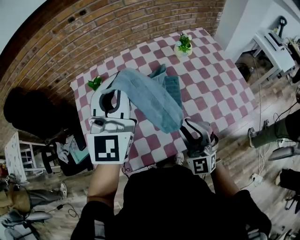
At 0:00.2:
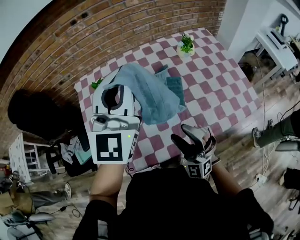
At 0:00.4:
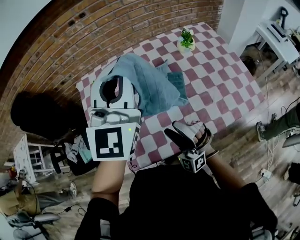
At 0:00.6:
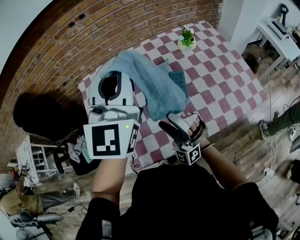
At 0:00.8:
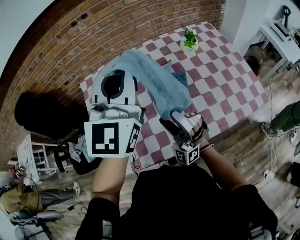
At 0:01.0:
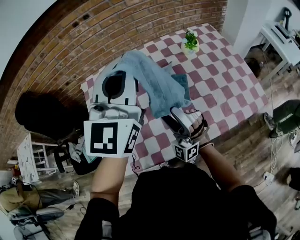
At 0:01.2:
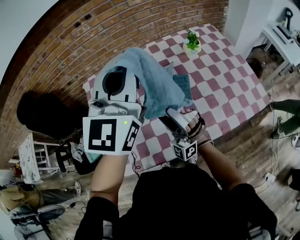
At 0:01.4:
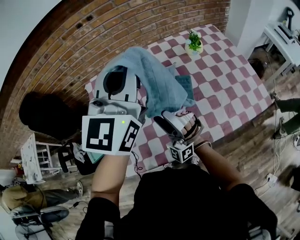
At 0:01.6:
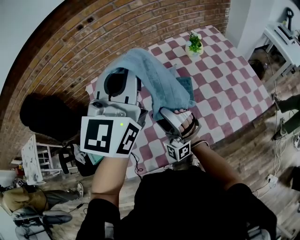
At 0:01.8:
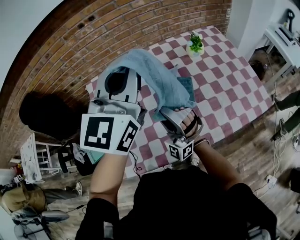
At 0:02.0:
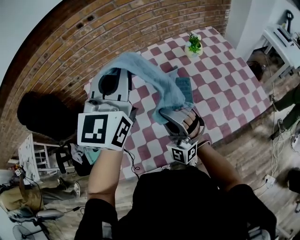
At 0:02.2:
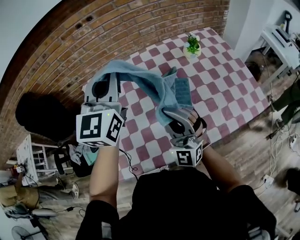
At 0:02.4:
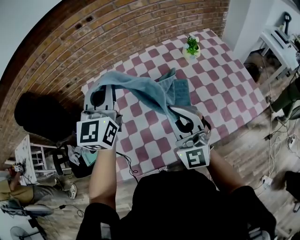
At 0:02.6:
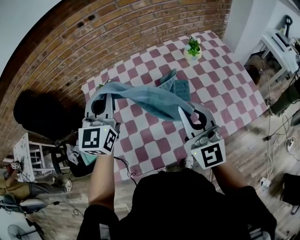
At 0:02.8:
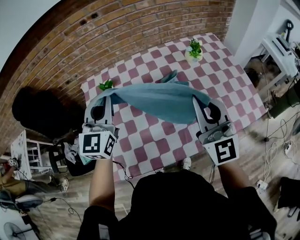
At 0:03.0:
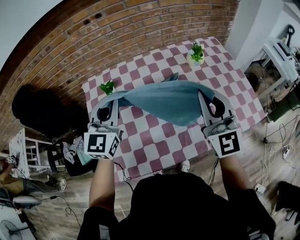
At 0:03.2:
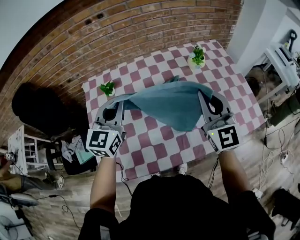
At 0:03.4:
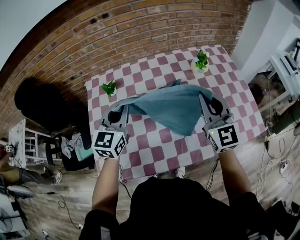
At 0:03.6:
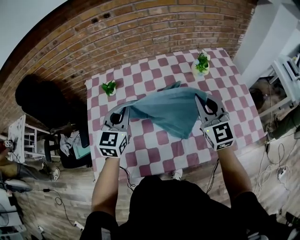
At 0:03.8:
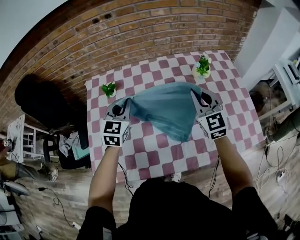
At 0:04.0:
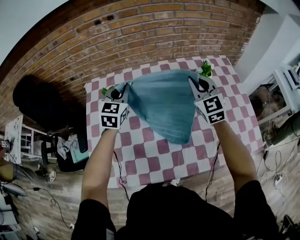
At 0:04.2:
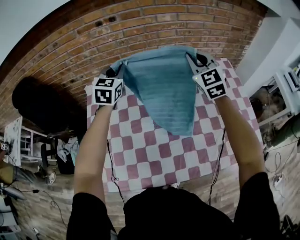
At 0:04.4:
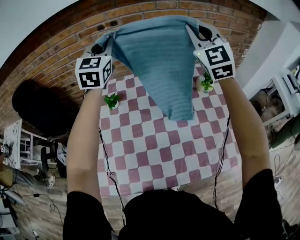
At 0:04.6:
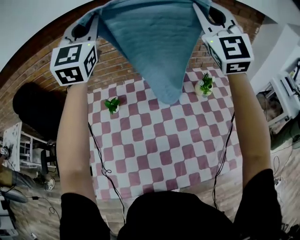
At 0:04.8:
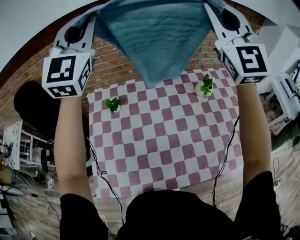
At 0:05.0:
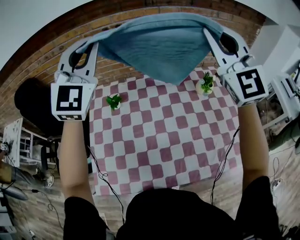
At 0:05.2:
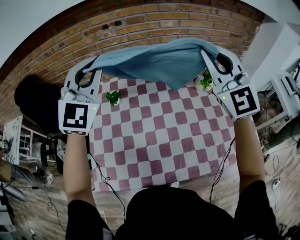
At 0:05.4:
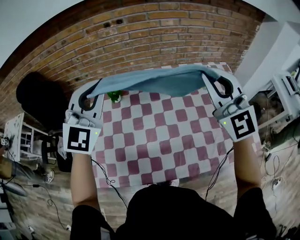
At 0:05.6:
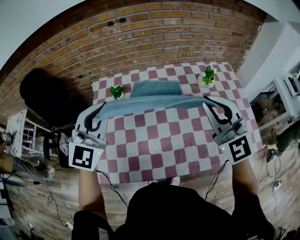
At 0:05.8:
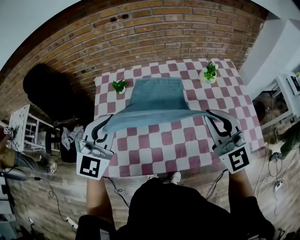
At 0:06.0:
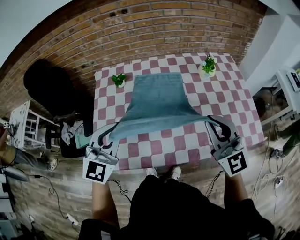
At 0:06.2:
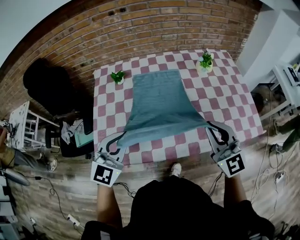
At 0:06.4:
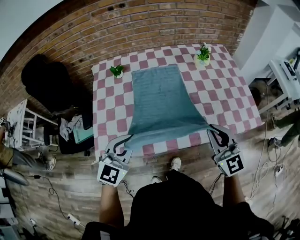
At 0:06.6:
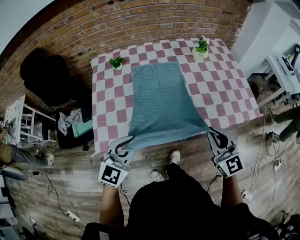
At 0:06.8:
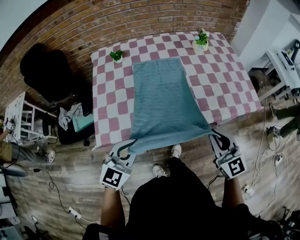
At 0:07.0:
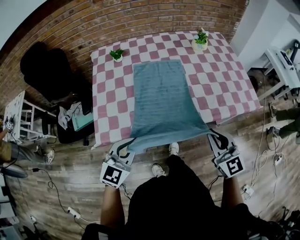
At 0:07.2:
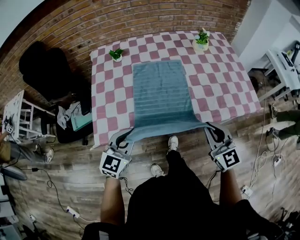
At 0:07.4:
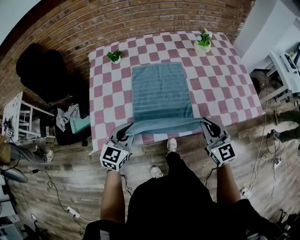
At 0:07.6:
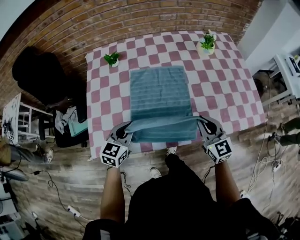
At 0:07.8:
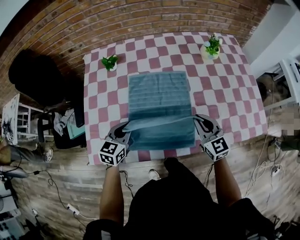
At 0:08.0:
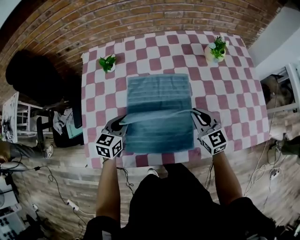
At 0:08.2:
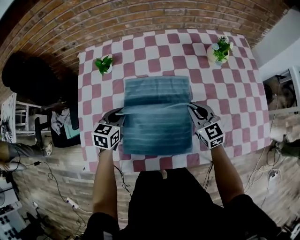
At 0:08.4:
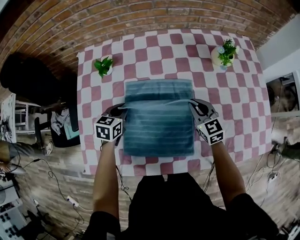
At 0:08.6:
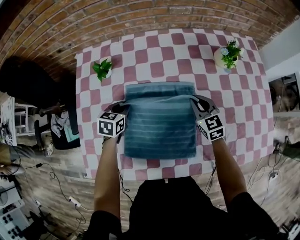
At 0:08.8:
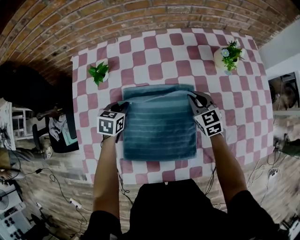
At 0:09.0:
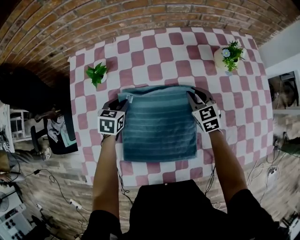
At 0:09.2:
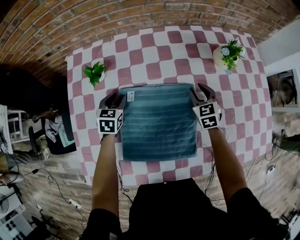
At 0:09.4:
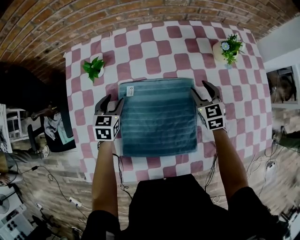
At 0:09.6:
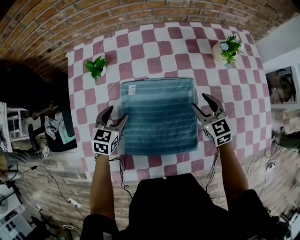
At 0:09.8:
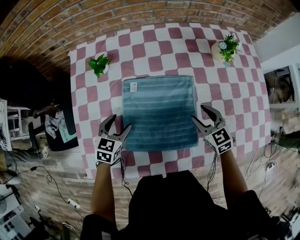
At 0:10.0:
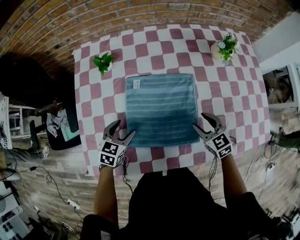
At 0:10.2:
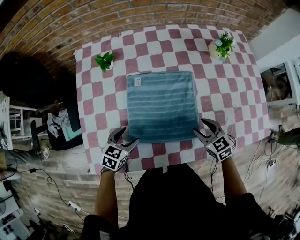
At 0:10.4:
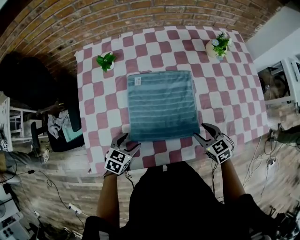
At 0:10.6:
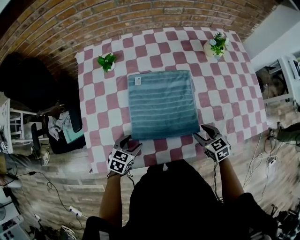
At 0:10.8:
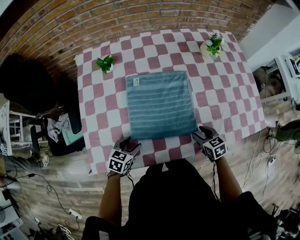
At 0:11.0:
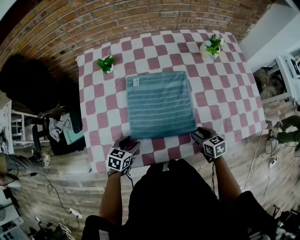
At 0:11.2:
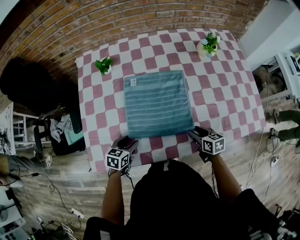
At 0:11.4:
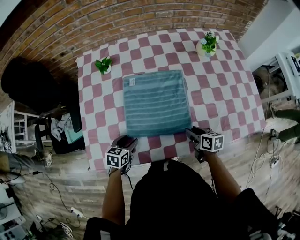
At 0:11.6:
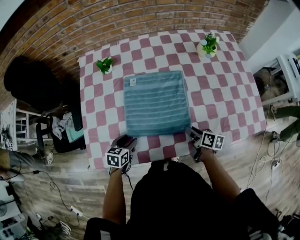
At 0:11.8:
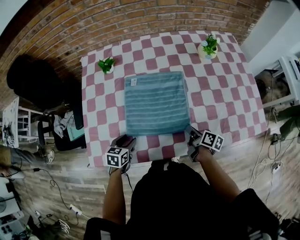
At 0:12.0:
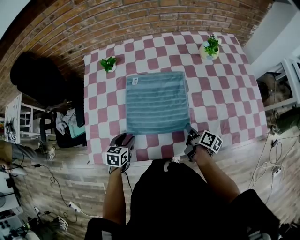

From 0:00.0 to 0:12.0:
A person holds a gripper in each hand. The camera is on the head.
From 0:00.0 to 0:01.6: The left gripper travels upward by about 5 cm. The right gripper heads to the left and forward, covering some 15 cm, rotates roughly 40 degrees, and opens up.
From 0:01.6 to 0:03.0: The right gripper shifts about 20 cm to the right and upward, twists some 50 degrees clockwise, seen from behind, and closes its fingers, while the left gripper heads downward and to the left, covering about 20 cm.
From 0:03.0 to 0:04.4: Both grippers move forward and upward, roughly 30 cm. The right gripper turns by about 20 degrees.
From 0:04.4 to 0:06.0: Both grippers travel together backward, about 40 cm. The right gripper rotates about 30 degrees.
From 0:06.0 to 0:07.6: Both grippers move downward, some 20 cm. The left gripper swivels some 30 degrees. The right gripper swivels approximately 20 degrees.
From 0:07.6 to 0:09.0: Both grippers move forward and downward, roughly 35 cm. The left gripper swivels roughly 30 degrees; the right gripper changes its angle by roughly 20 degrees.
From 0:09.0 to 0:10.4: Both grippers move backward, some 30 cm.
From 0:10.4 to 0:12.0: The right gripper rolls clockwise, seen from behind, by roughly 80 degrees. Meanwhile the left gripper swivels roughly 20 degrees.

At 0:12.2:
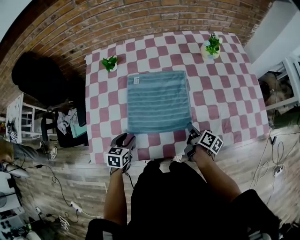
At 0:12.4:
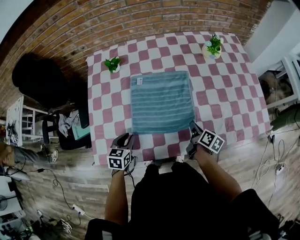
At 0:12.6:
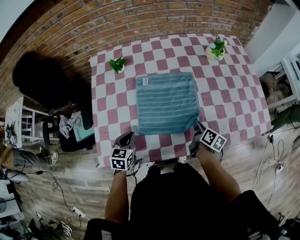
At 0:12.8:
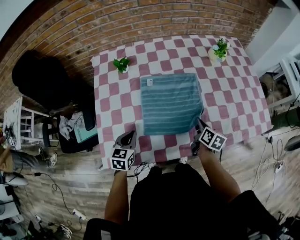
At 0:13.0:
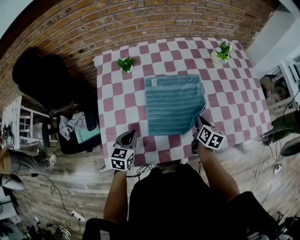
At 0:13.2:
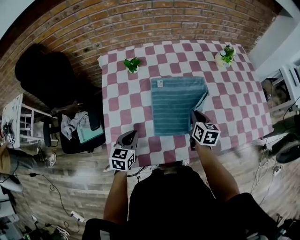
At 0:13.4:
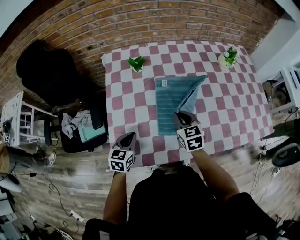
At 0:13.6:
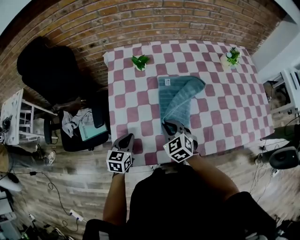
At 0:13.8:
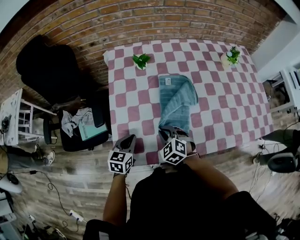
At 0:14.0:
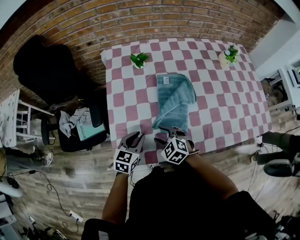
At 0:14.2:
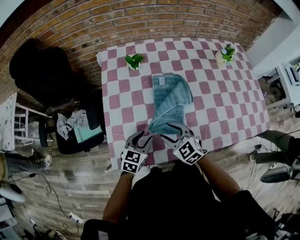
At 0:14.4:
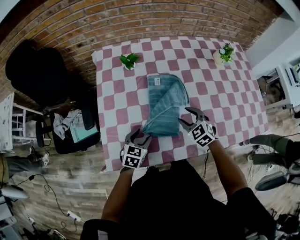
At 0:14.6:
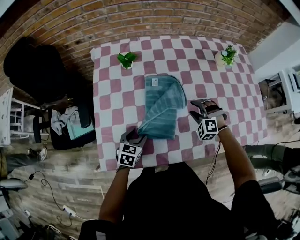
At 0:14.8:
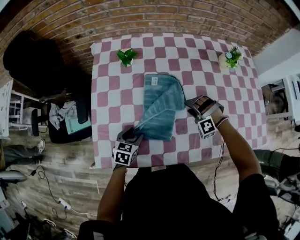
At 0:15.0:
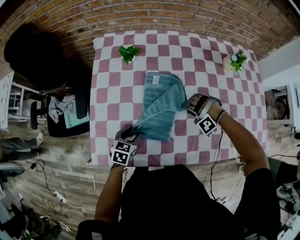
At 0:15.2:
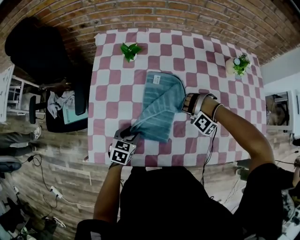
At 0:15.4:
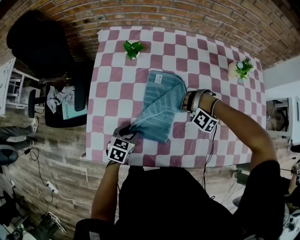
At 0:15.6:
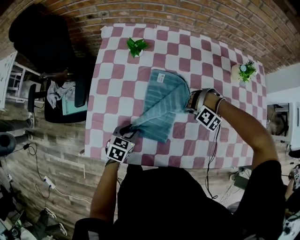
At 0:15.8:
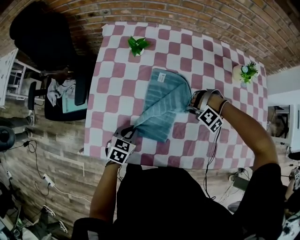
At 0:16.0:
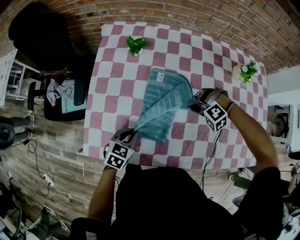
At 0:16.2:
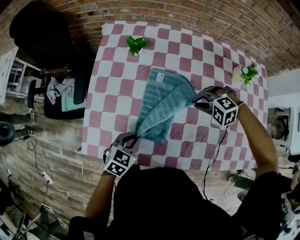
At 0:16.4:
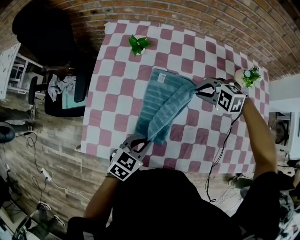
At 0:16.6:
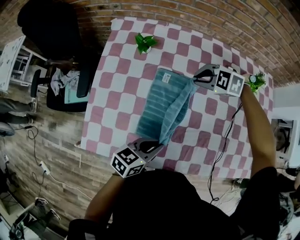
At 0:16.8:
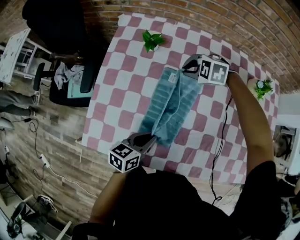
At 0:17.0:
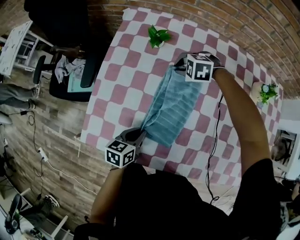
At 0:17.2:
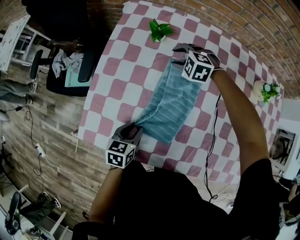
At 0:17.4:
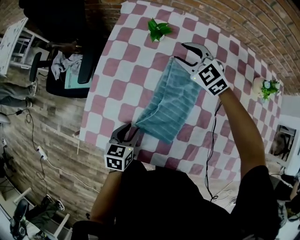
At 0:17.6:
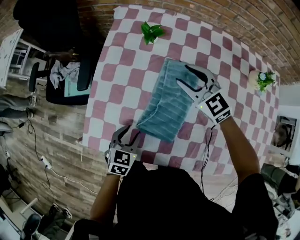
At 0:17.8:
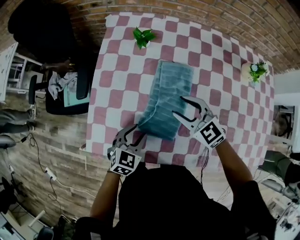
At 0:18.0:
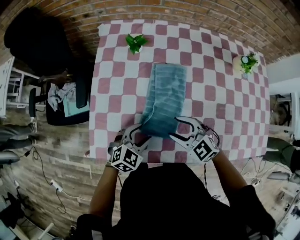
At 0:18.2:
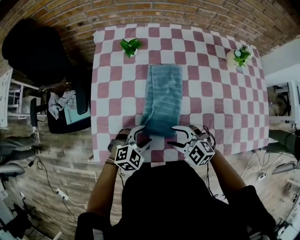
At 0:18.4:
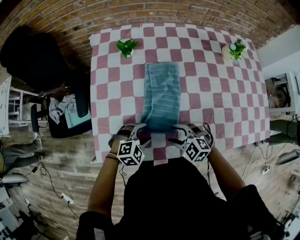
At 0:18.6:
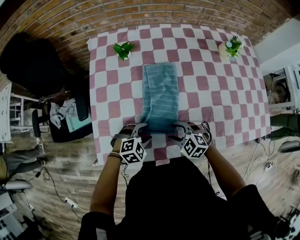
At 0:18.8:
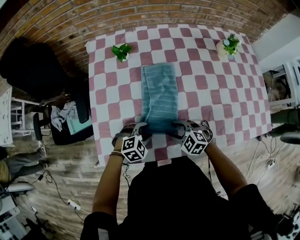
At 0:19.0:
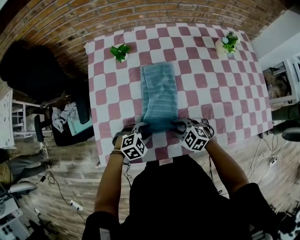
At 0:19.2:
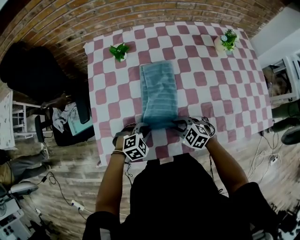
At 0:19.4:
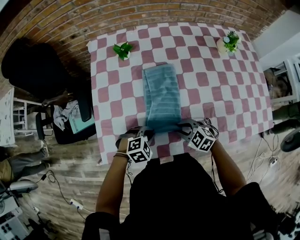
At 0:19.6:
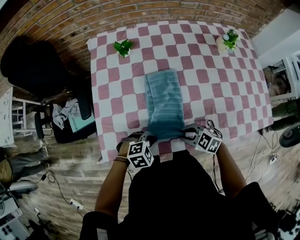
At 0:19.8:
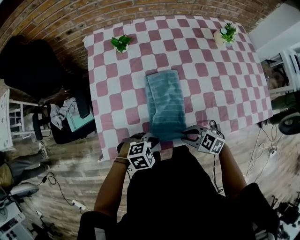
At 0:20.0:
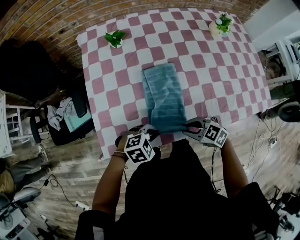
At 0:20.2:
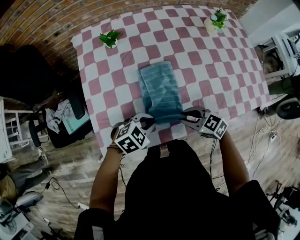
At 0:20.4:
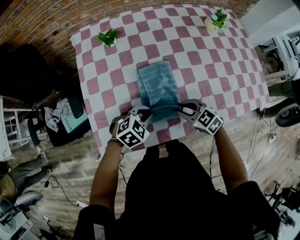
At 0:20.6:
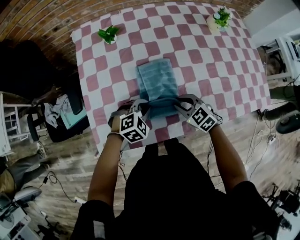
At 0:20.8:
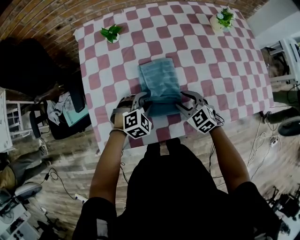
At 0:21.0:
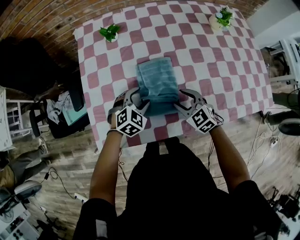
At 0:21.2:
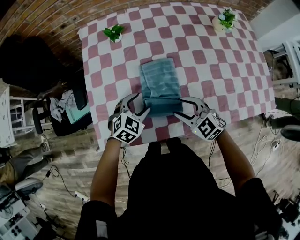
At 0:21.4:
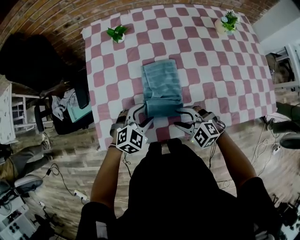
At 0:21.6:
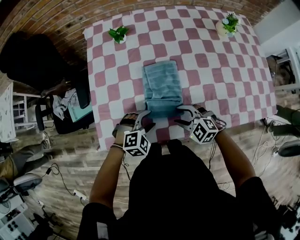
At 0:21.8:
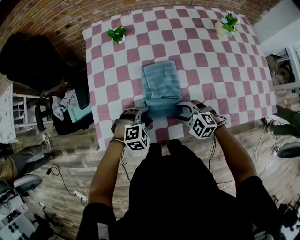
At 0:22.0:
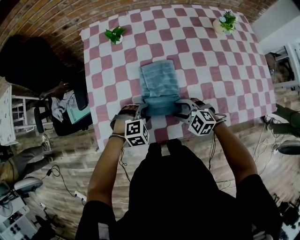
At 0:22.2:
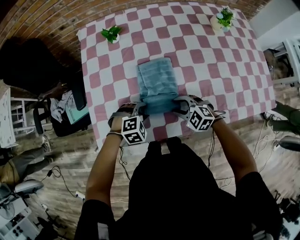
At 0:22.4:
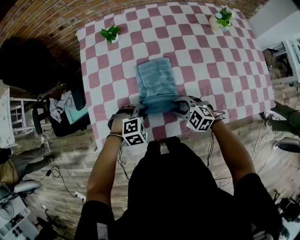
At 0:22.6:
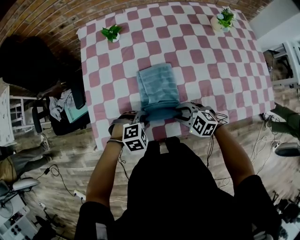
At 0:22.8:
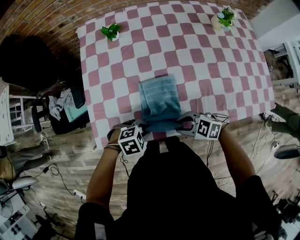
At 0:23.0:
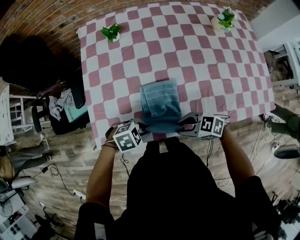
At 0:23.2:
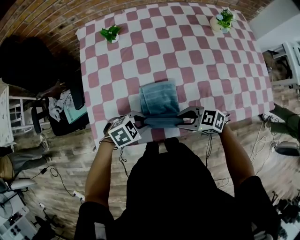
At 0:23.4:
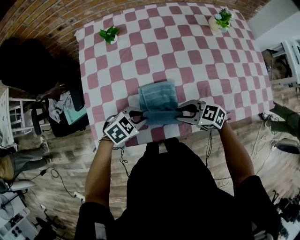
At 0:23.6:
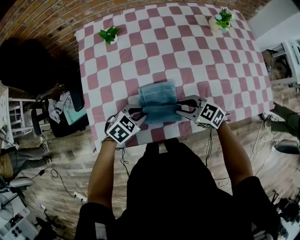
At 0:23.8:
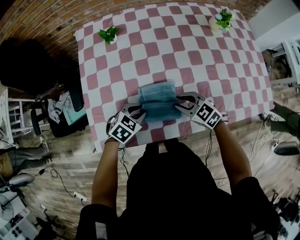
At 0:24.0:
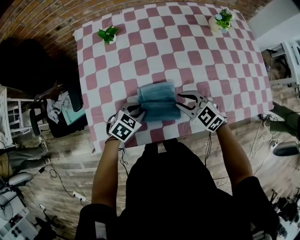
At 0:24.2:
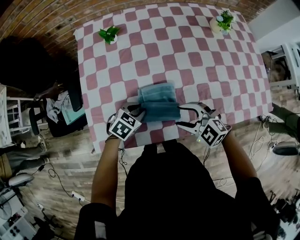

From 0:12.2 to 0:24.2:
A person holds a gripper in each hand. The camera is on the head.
From 0:12.2 to 0:13.8: The right gripper travels to the left by approximately 35 cm, and rolls counterclockwise, seen from behind, by approximately 100 degrees. The left gripper goes approximately 15 cm to the left.
From 0:13.8 to 0:15.2: The right gripper travels to the right and forward by approximately 25 cm, and rolls counterclockwise, seen from behind, by roughly 100 degrees. The left gripper moves to the right and downward, roughly 15 cm.
From 0:15.2 to 0:16.6: The left gripper ends up about 15 cm from where it was, and rotates some 30 degrees. Meanwhile the right gripper ends up about 20 cm from where it was, and rotates around the line of its fingers by approximately 60 degrees, clockwise from behind.
From 0:16.6 to 0:18.2: The right gripper goes up and down, roughly 10 cm each way, reversing 2 times, and rotates some 30 degrees. The left gripper rolls clockwise, seen from behind, by roughly 60 degrees, and opens.
From 0:18.2 to 0:19.8: The left gripper changes place by some 10 cm, turns by approximately 30 degrees, and closes. Meanwhile the right gripper shifts by approximately 10 cm, and swivels approximately 20 degrees.
From 0:19.8 to 0:21.2: The right gripper shifts by some 10 cm, and rotates approximately 30 degrees, while the left gripper ends up approximately 15 cm from where it was, changes its angle by some 30 degrees, and opens up.
From 0:21.2 to 0:22.6: The left gripper ends up roughly 10 cm from where it was, changes its angle by approximately 30 degrees, and closes. Meanwhile the right gripper moves downward, about 5 cm, and turns by some 20 degrees.
From 0:22.6 to 0:24.2: The left gripper ends up approximately 10 cm from where it was, and changes its angle by about 40 degrees; the right gripper is displaced upward by roughly 10 cm.
